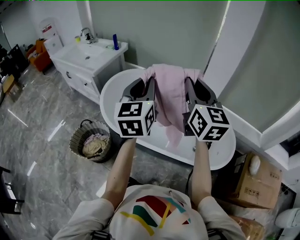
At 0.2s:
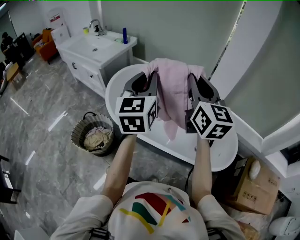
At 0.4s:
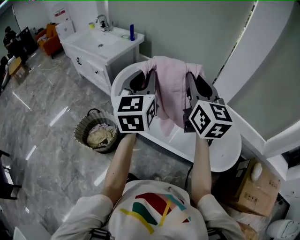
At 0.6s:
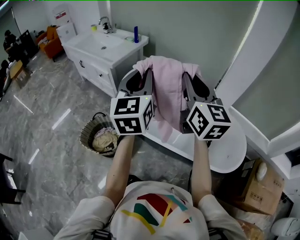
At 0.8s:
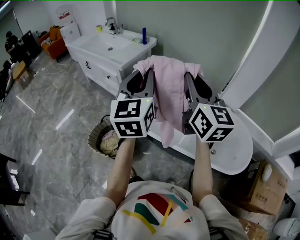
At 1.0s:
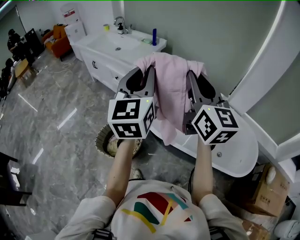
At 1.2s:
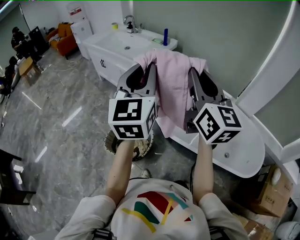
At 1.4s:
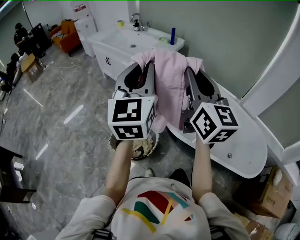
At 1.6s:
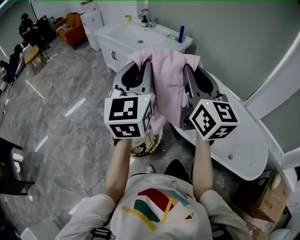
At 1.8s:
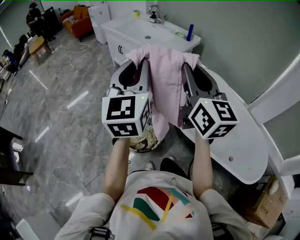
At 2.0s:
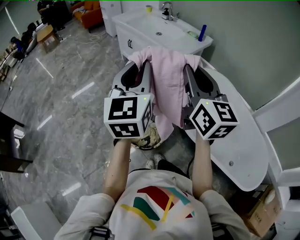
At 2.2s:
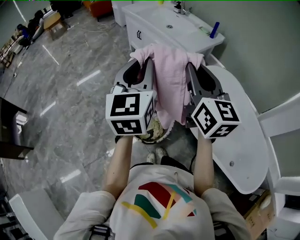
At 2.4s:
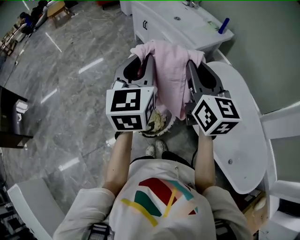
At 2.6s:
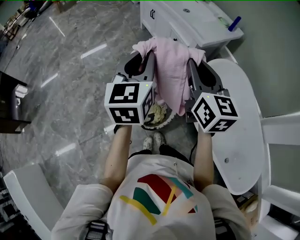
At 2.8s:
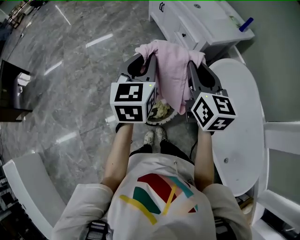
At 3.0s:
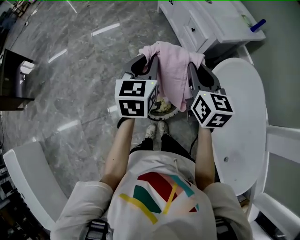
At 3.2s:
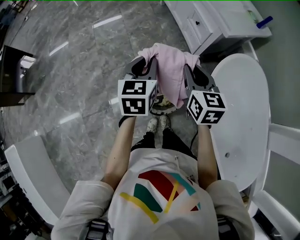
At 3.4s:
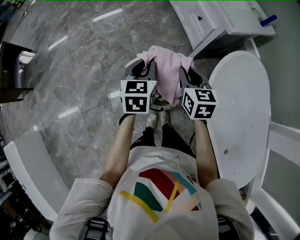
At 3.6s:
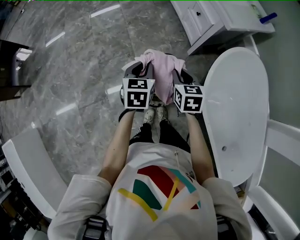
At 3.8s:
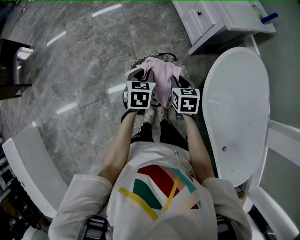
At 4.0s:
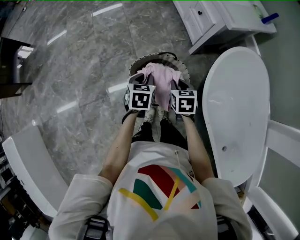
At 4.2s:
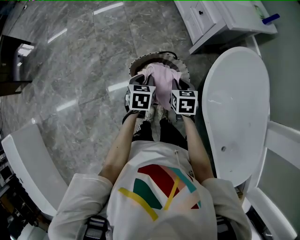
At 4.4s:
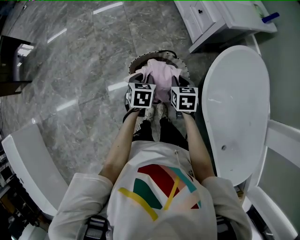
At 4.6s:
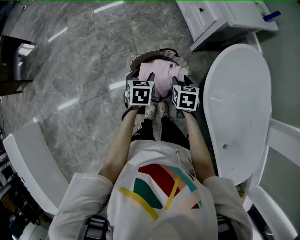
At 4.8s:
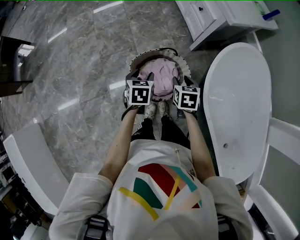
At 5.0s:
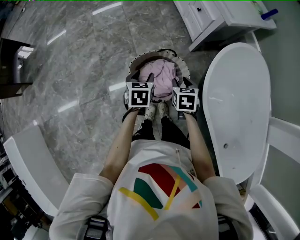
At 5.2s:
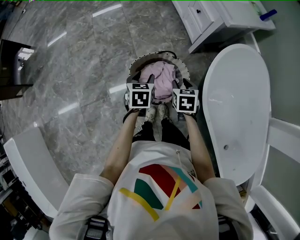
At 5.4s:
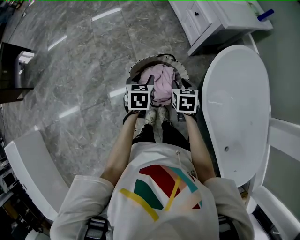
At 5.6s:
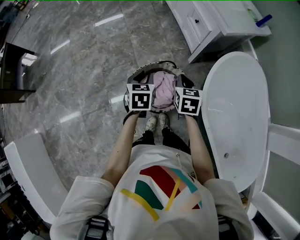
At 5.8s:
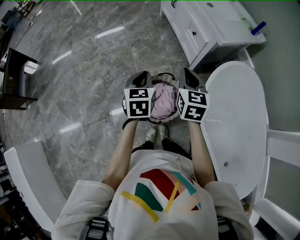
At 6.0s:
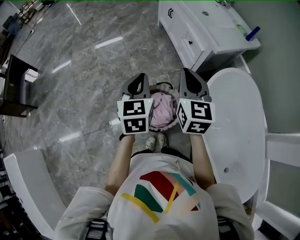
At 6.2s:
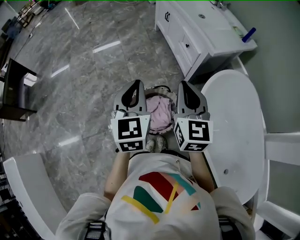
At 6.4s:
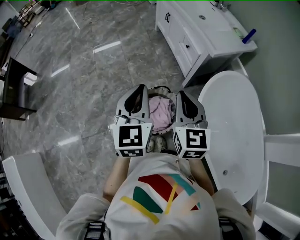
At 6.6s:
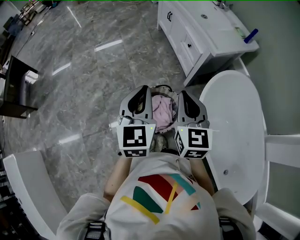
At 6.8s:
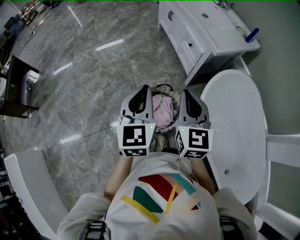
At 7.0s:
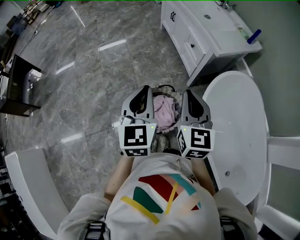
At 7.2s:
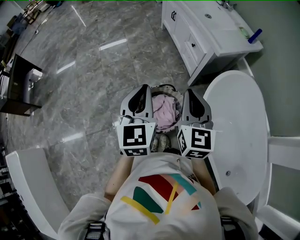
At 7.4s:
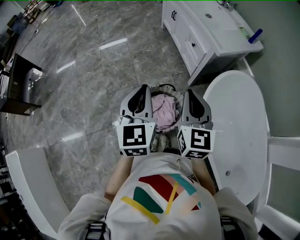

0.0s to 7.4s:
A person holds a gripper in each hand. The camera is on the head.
0.0s to 1.4s: The two grippers travel together, to the left, about 40 cm.
1.4s to 3.0s: The left gripper goes approximately 25 cm downward, and rotates some 40 degrees. Meanwhile the right gripper moves approximately 35 cm, and changes its angle by approximately 40 degrees.
3.0s to 4.4s: The grippers both shift downward by approximately 25 cm. The left gripper points its fingers approximately 30 degrees further downward. The right gripper tilts its fingers approximately 30 degrees downward.
4.4s to 6.0s: Both grippers move upward, about 25 cm. The right gripper points its fingers roughly 40 degrees further upward. Meanwhile the left gripper tilts its fingers roughly 30 degrees upward, and opens and closes again.
6.0s to 7.4s: The left gripper moves roughly 5 cm. The right gripper shifts roughly 5 cm backward.

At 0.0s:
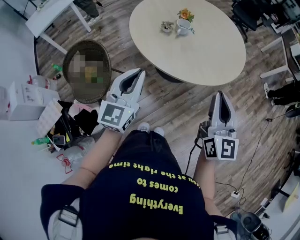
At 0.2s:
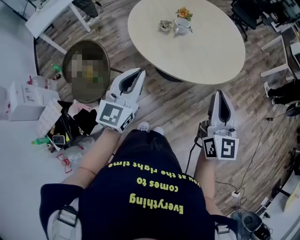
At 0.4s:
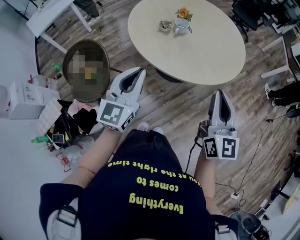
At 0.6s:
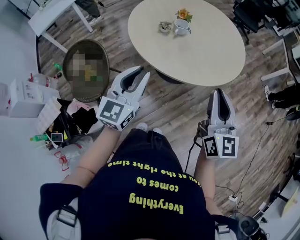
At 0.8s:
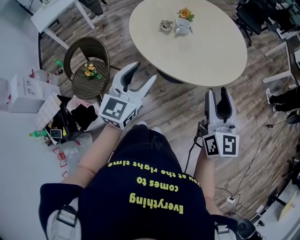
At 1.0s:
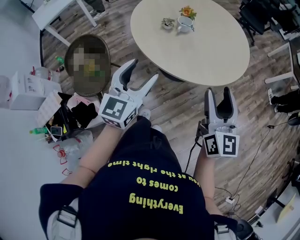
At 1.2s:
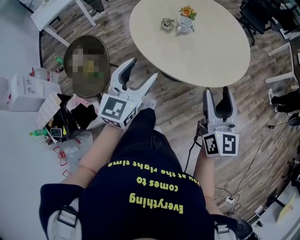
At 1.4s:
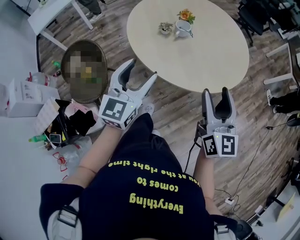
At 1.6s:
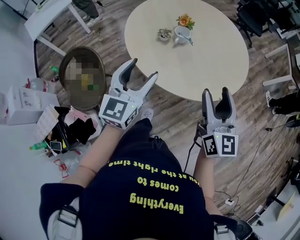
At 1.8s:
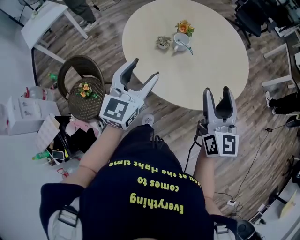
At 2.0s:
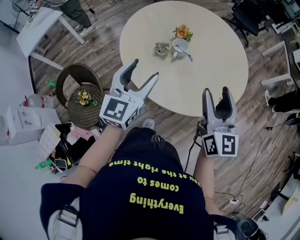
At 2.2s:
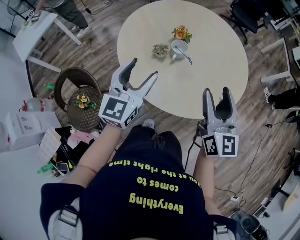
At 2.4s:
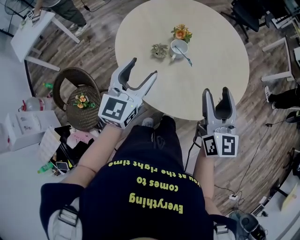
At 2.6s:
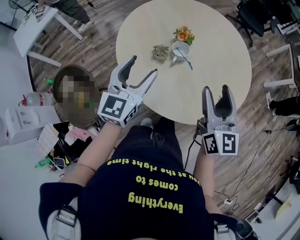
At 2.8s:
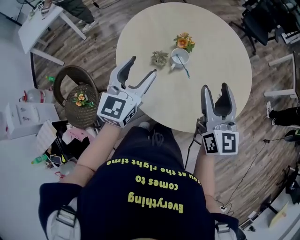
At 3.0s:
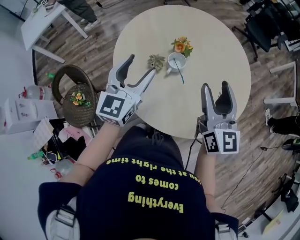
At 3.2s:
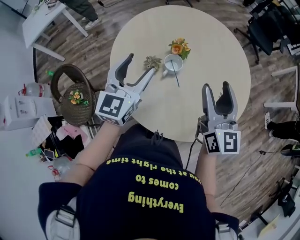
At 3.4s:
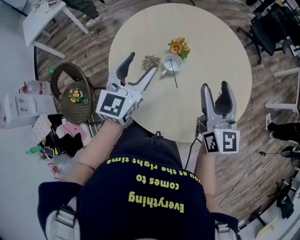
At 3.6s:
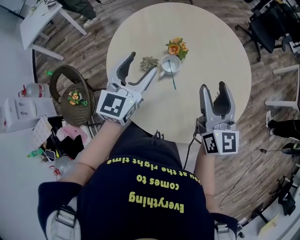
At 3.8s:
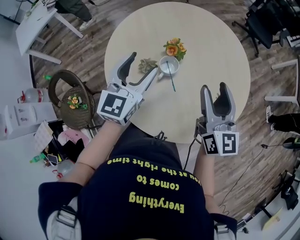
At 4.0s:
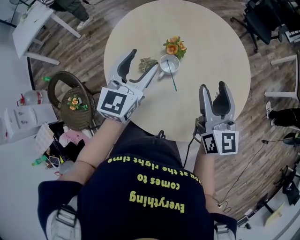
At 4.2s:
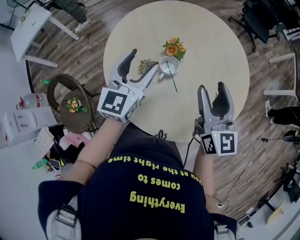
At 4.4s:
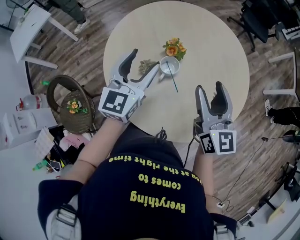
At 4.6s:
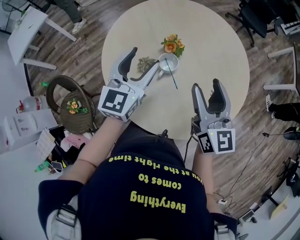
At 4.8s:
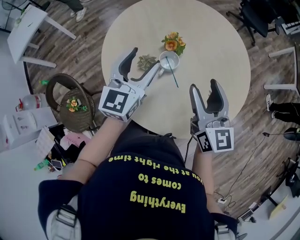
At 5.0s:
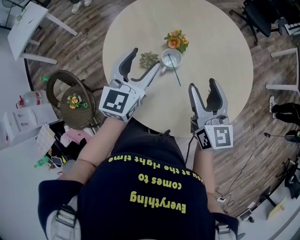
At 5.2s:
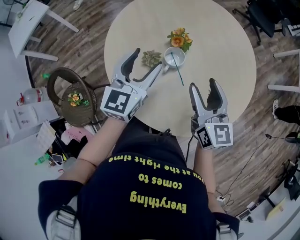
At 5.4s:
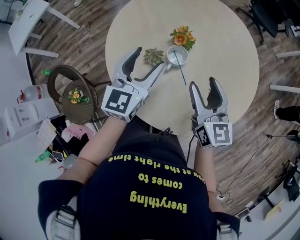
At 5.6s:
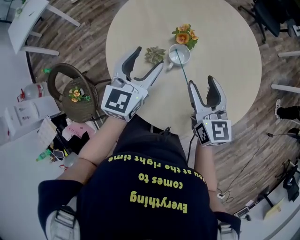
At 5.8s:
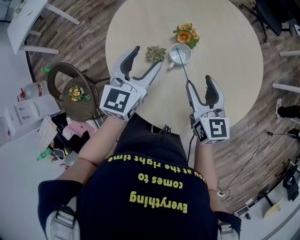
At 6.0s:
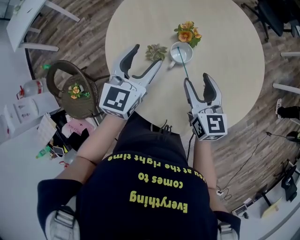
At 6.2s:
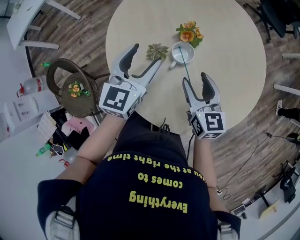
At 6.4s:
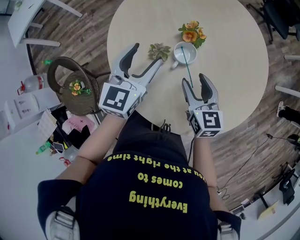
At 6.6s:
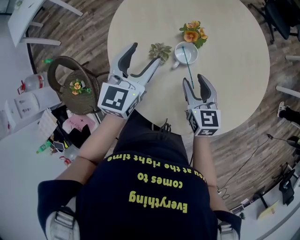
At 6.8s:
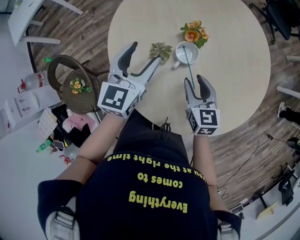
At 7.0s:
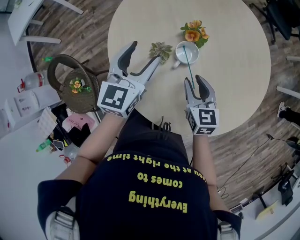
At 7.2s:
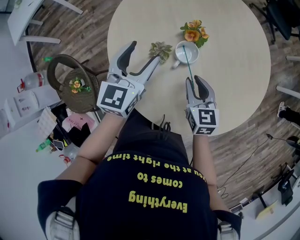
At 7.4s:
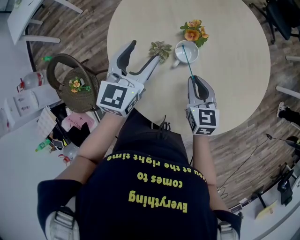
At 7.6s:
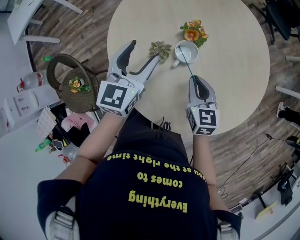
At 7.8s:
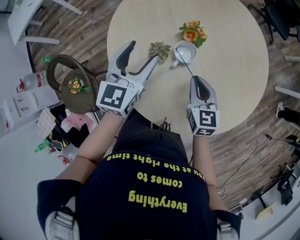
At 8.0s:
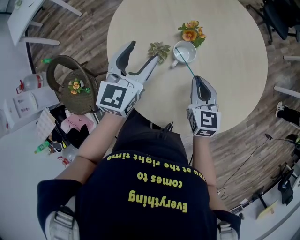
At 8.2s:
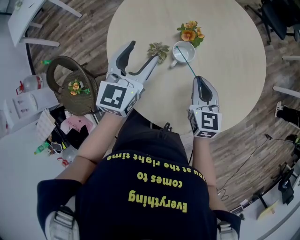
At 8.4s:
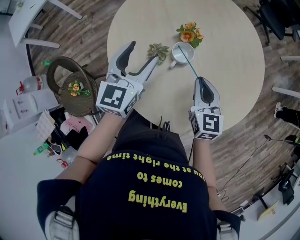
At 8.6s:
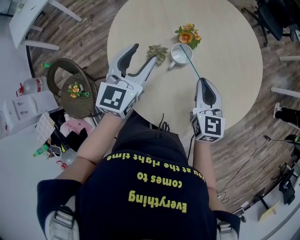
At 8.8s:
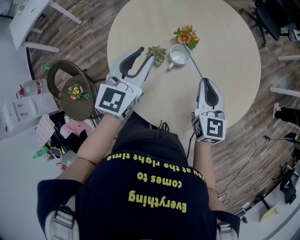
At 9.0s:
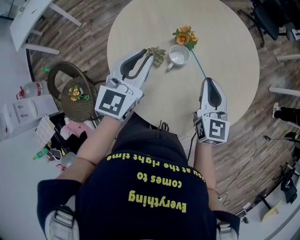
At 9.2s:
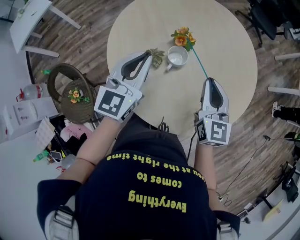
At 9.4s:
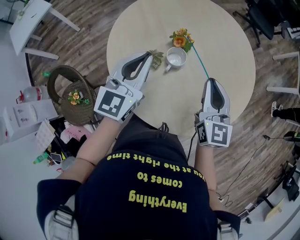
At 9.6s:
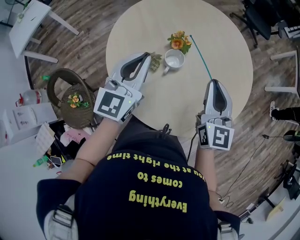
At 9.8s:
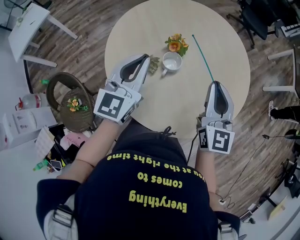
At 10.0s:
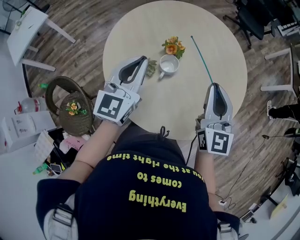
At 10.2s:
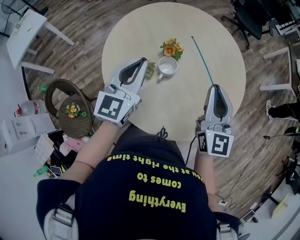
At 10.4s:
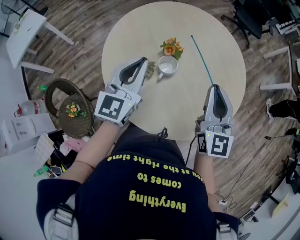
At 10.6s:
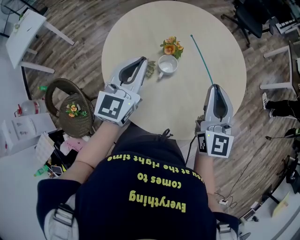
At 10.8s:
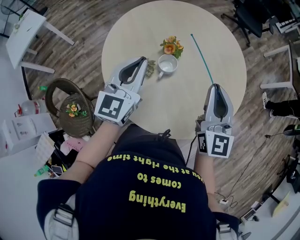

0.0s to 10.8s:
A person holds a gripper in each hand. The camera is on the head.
0.0s to 1.6s: The grippers both shift forward by approximately 10 cm. The right gripper opens, while the left gripper opens.
1.6s to 3.0s: The two grippers go about 25 cm forward.
3.0s to 4.6s: The right gripper moves roughly 5 cm. The left gripper moves forward, approximately 10 cm.
4.6s to 6.2s: The right gripper shifts roughly 15 cm downward, while the left gripper shifts about 10 cm downward.
6.2s to 7.8s: The right gripper closes its fingers.
7.8s to 9.2s: The right gripper goes approximately 15 cm upward; the left gripper goes approximately 10 cm upward, and closes.
9.2s to 10.8s: The right gripper moves upward, approximately 10 cm.

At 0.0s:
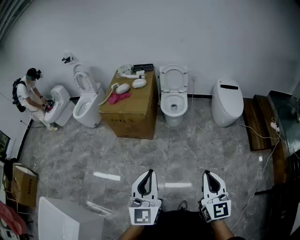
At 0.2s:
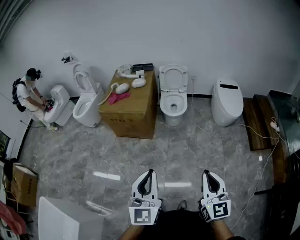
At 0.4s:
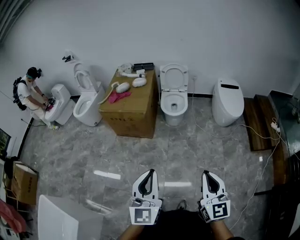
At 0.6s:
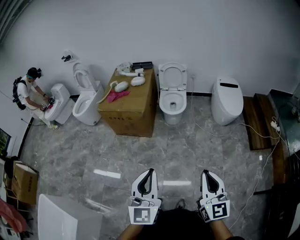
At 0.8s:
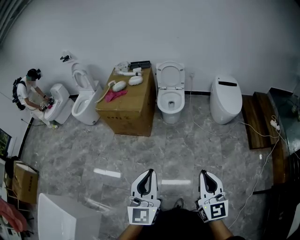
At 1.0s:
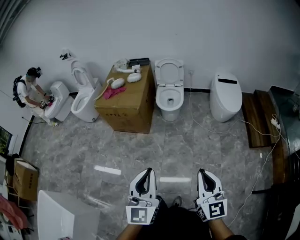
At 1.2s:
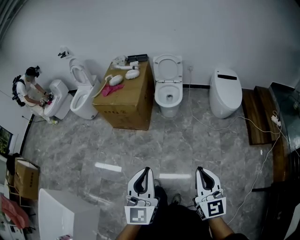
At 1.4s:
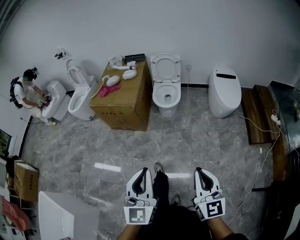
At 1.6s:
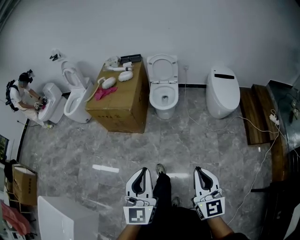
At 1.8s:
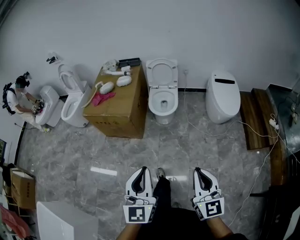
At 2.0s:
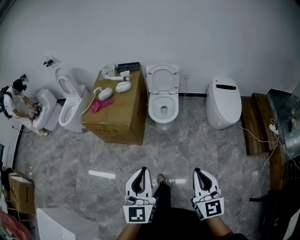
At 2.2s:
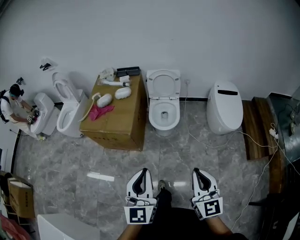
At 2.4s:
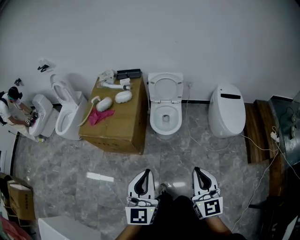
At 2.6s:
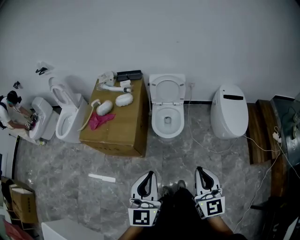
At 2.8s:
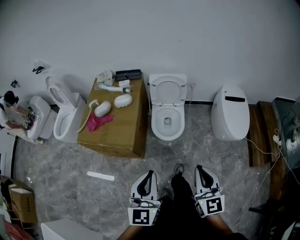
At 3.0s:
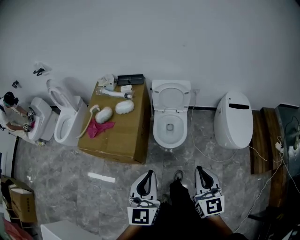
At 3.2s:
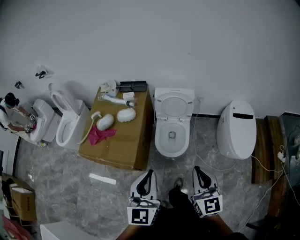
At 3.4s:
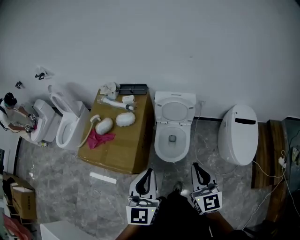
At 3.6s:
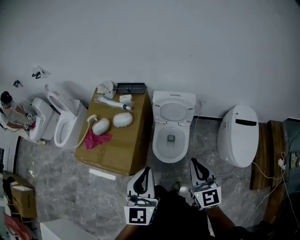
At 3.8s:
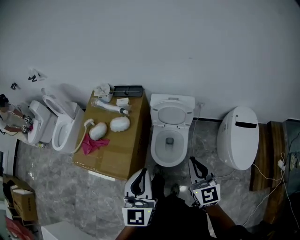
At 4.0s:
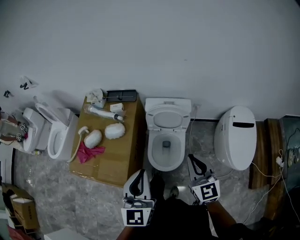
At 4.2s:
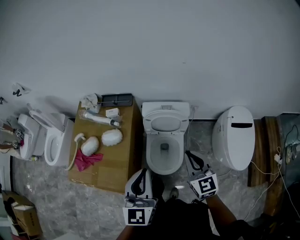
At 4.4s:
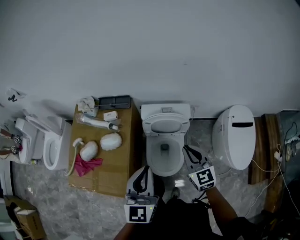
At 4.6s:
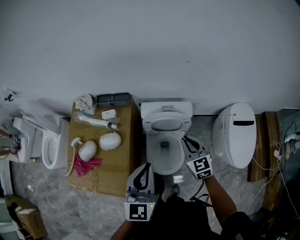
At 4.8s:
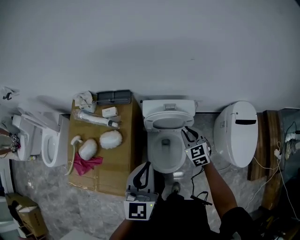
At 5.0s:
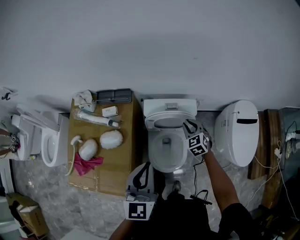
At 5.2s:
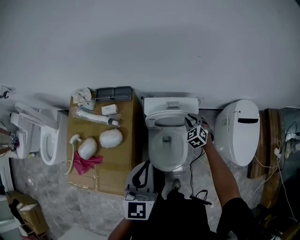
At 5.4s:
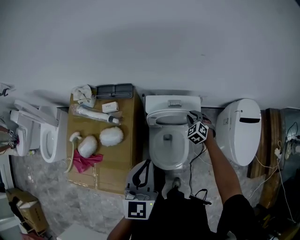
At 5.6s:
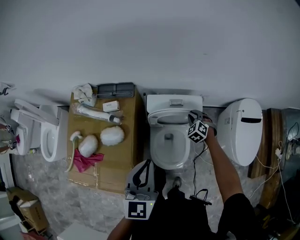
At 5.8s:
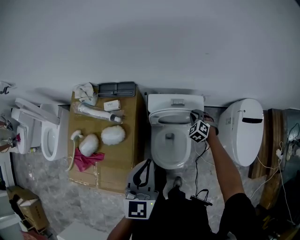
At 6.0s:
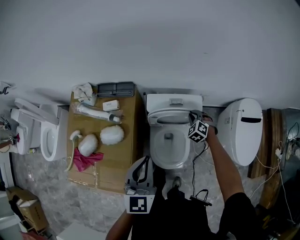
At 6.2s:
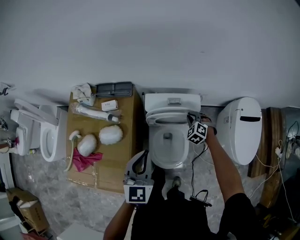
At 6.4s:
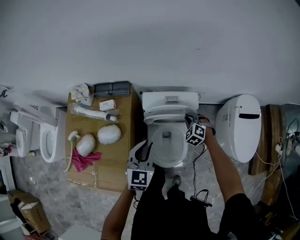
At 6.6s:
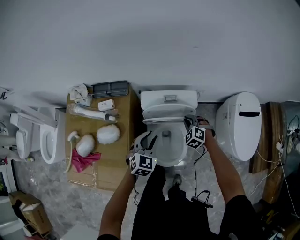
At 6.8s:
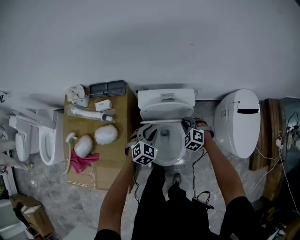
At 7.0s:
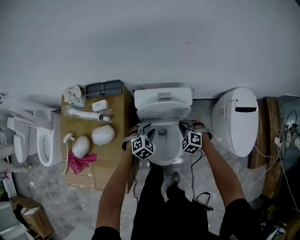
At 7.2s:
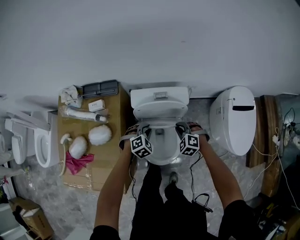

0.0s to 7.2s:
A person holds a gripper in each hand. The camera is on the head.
0.0s to 1.4s: The two grippers go about 10 cm to the right.
1.4s to 2.8s: Both grippers are carried forward, some 50 cm.
2.8s to 4.4s: The pair of grippers is taken forward, roughly 50 cm.
4.4s to 5.8s: The right gripper heads downward and forward, covering some 35 cm, and tilts its fingers approximately 30 degrees downward, while the left gripper shifts about 10 cm downward and forward.
5.8s to 7.2s: The right gripper moves backward, some 10 cm. Meanwhile the left gripper heads downward, covering about 30 cm, points its fingers roughly 30 degrees further downward, and opens.
